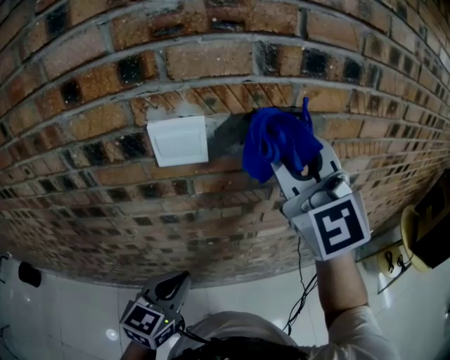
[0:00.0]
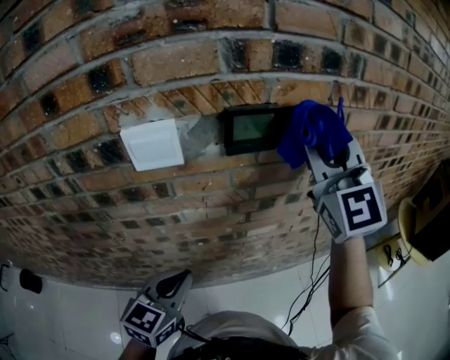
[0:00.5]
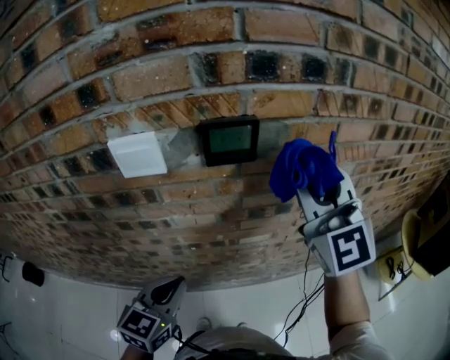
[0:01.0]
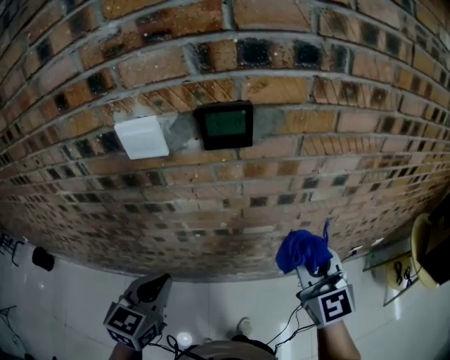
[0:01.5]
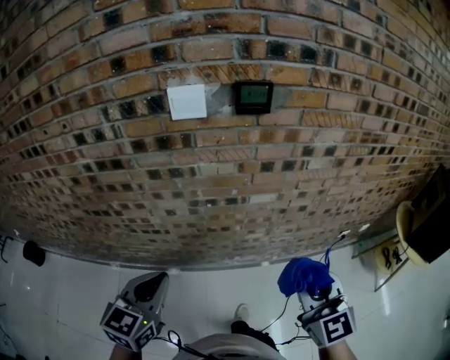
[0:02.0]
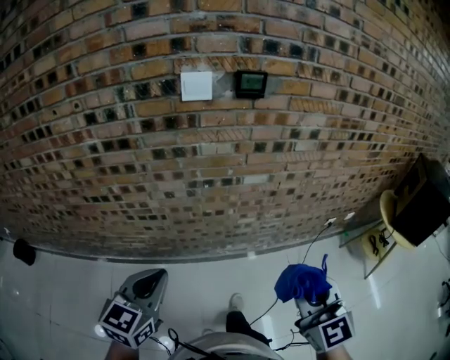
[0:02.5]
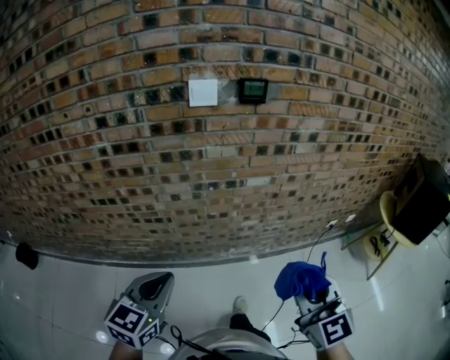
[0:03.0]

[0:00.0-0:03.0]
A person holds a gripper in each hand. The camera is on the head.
0:00.0 to 0:01.5: The left gripper ends up roughly 5 cm from where it was, while the right gripper travels downward, to the right and backward by roughly 30 cm, and rotates about 20 degrees.
0:01.5 to 0:03.0: Both grippers move backward, about 30 cm.

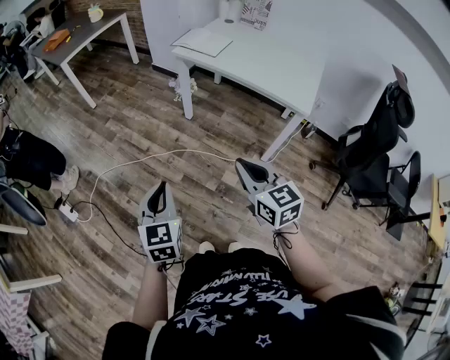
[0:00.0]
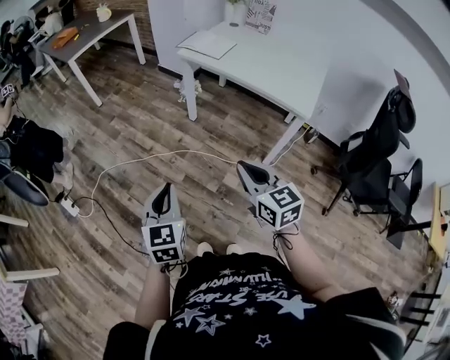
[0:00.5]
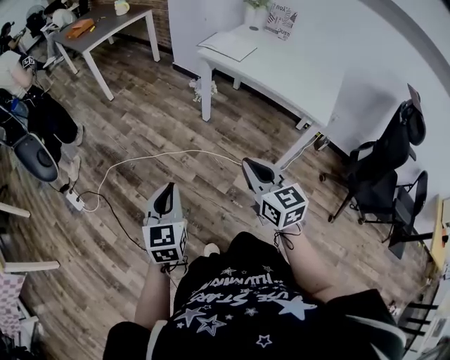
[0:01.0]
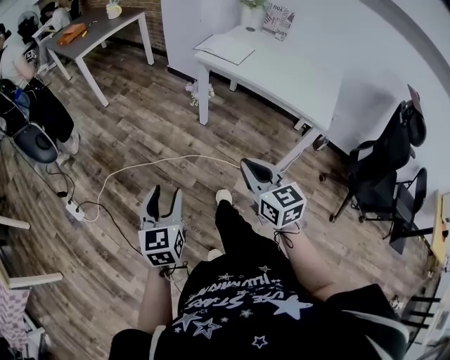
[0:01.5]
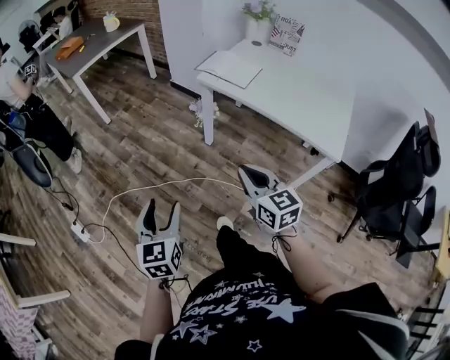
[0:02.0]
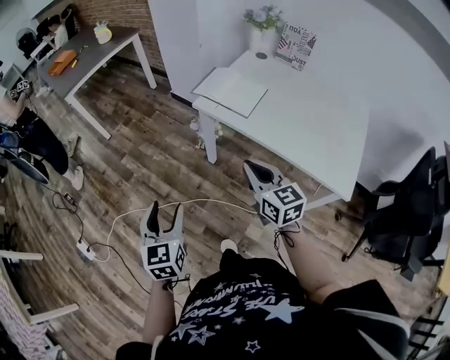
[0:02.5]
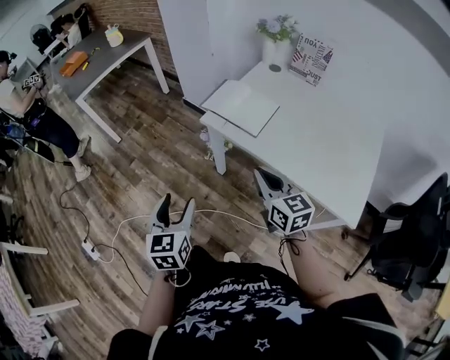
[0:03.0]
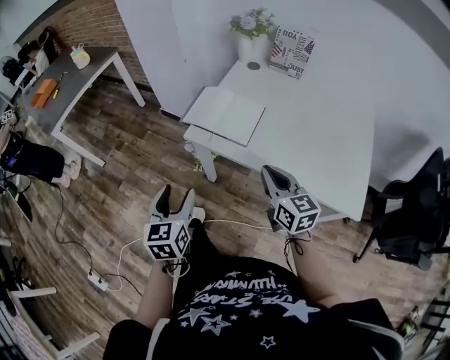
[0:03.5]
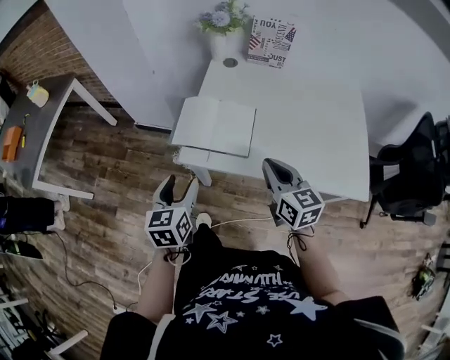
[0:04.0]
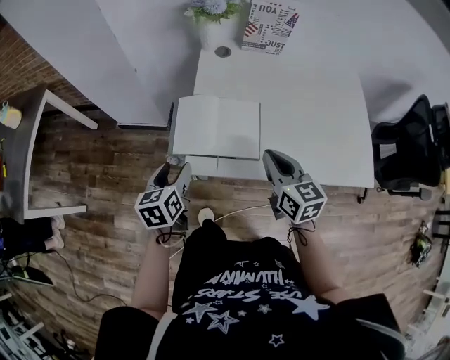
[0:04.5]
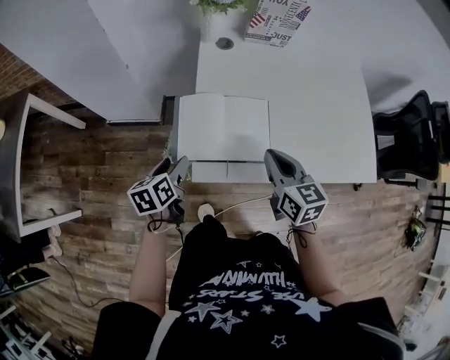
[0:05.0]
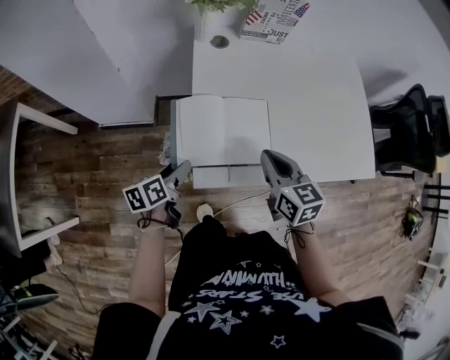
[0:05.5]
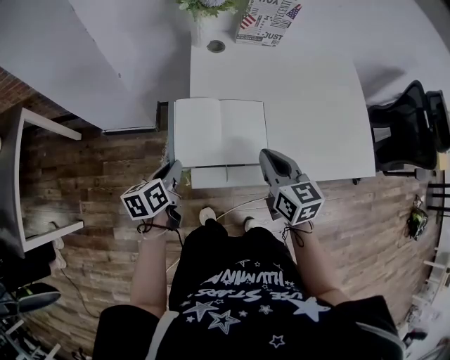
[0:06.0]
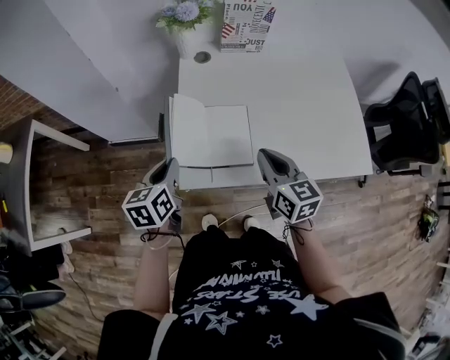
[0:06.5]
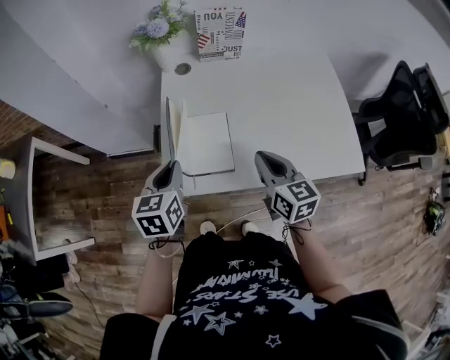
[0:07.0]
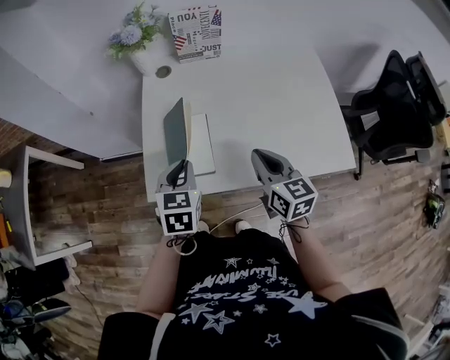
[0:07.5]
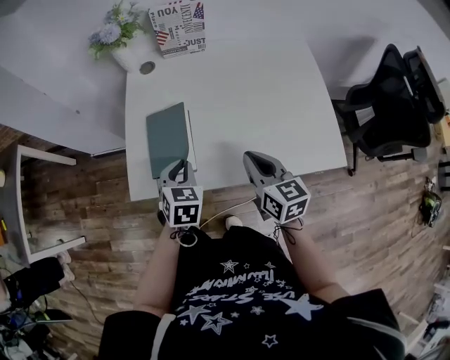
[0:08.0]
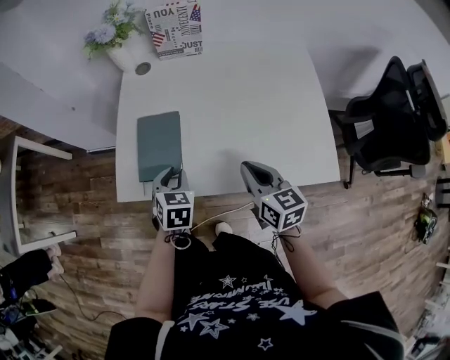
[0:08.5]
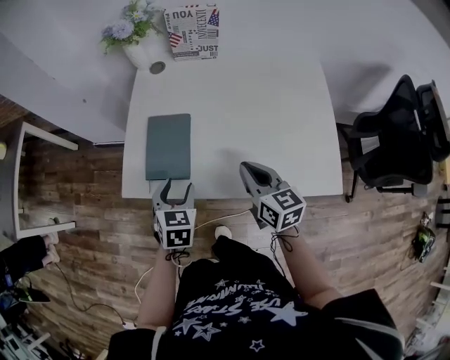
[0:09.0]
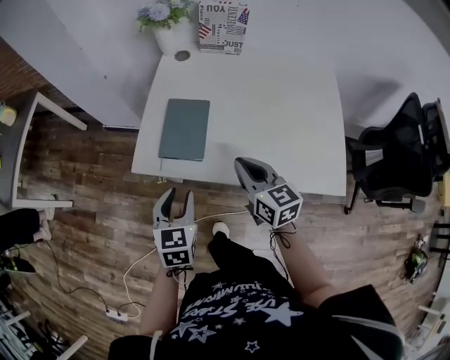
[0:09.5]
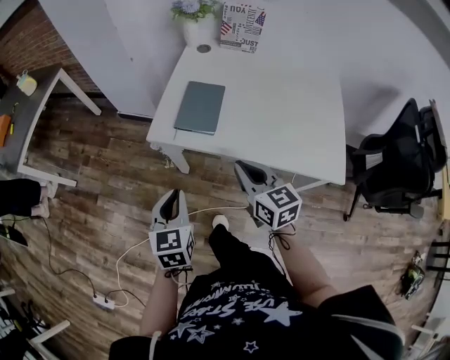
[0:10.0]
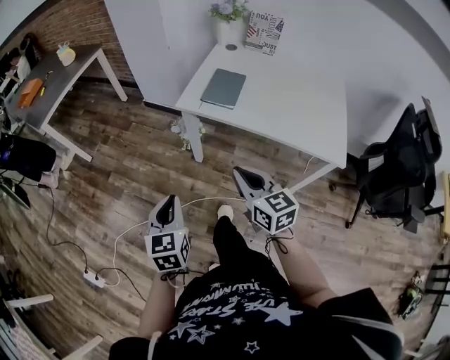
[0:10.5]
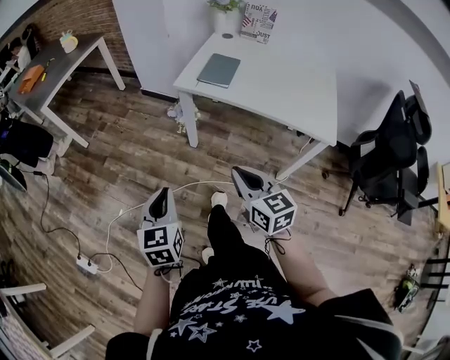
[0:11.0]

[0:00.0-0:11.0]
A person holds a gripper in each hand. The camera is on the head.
0:00.0 to 0:02.0: Both grippers move forward, about 20 cm. The left gripper opens.
0:02.0 to 0:03.5: The right gripper goes roughly 35 cm forward and to the right. Meanwhile the left gripper heads forward, covering roughly 40 cm.
0:03.5 to 0:05.5: The left gripper moves about 40 cm, and rotates some 60 degrees. Meanwhile the right gripper changes place by some 20 cm, and rotates about 30 degrees.
0:05.5 to 0:07.5: The left gripper travels to the right and upward by about 25 cm, rolls clockwise, seen from behind, by some 50 degrees, and closes. The right gripper is displaced to the right by about 15 cm.
0:07.5 to 0:09.0: The left gripper is displaced downward and to the right by approximately 10 cm, and opens up. Meanwhile the right gripper shifts by about 5 cm.
0:09.0 to 0:11.0: Both grippers are carried backward and to the left, roughly 50 cm. The left gripper swivels approximately 40 degrees, and closes its fingers. Meanwhile the right gripper turns by roughly 20 degrees.

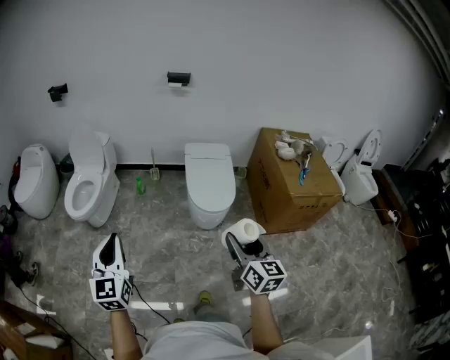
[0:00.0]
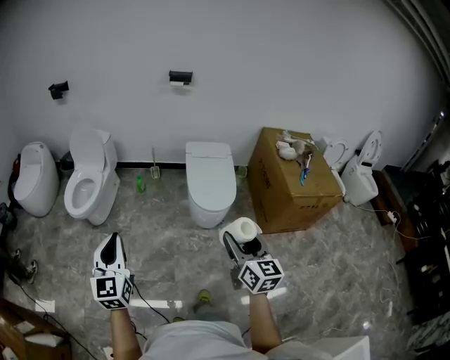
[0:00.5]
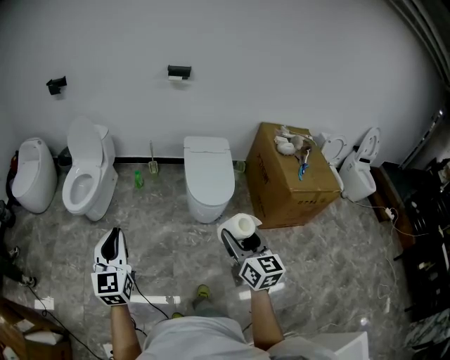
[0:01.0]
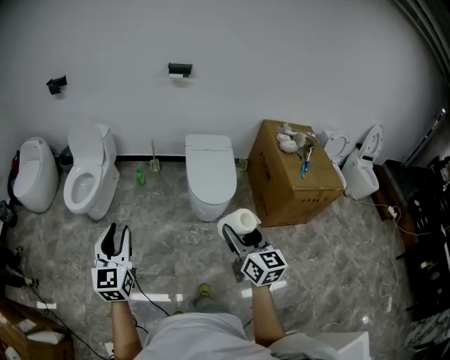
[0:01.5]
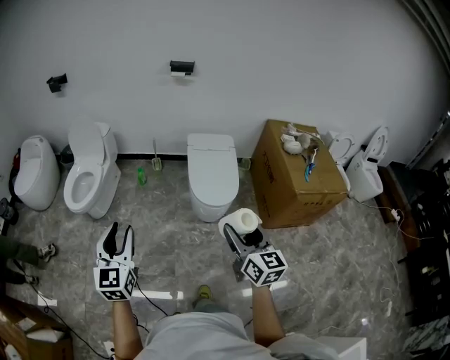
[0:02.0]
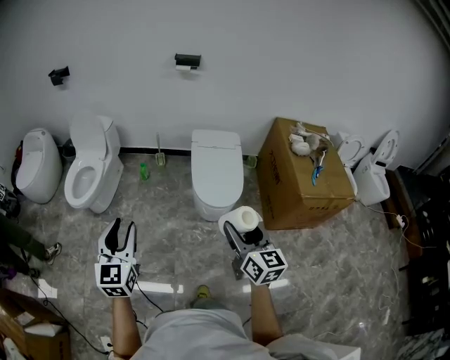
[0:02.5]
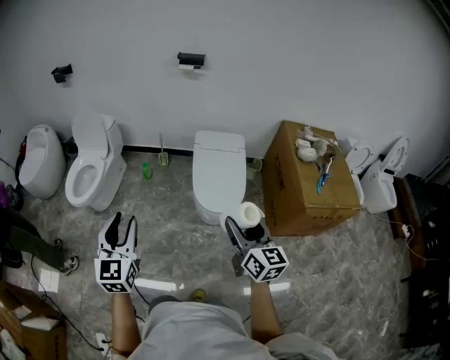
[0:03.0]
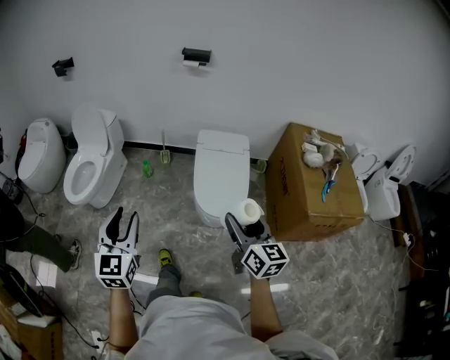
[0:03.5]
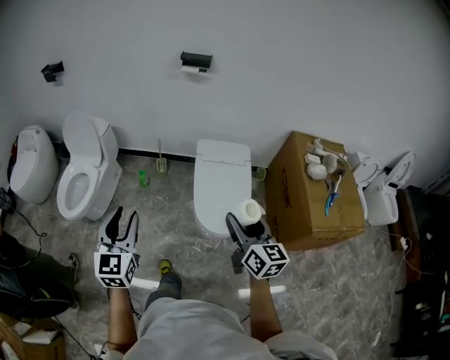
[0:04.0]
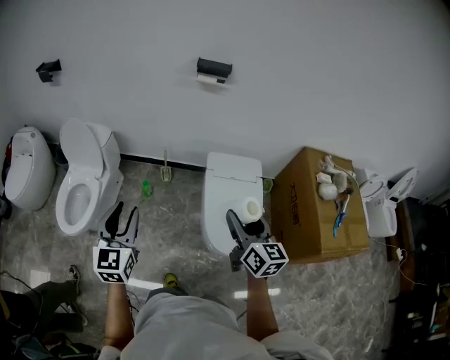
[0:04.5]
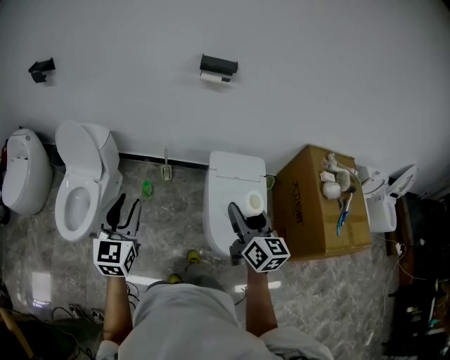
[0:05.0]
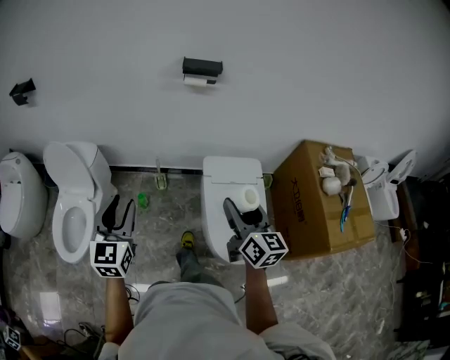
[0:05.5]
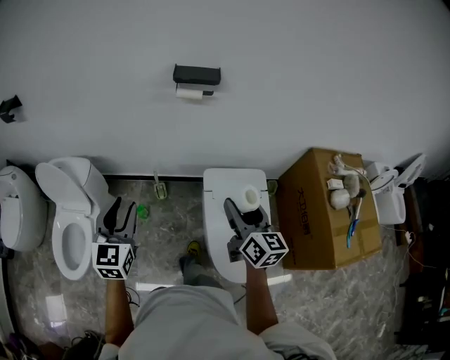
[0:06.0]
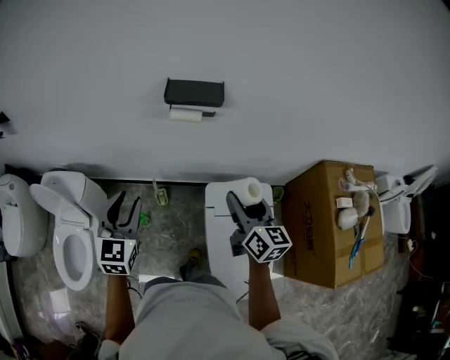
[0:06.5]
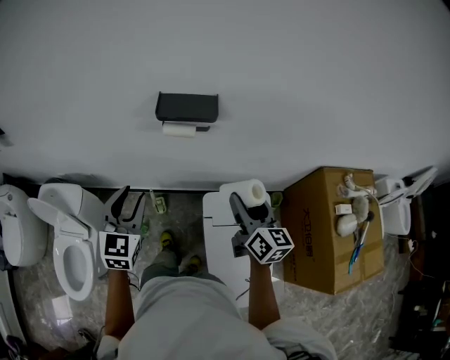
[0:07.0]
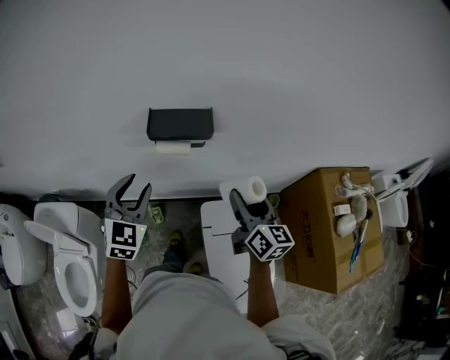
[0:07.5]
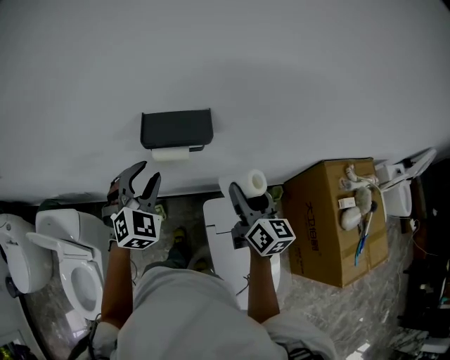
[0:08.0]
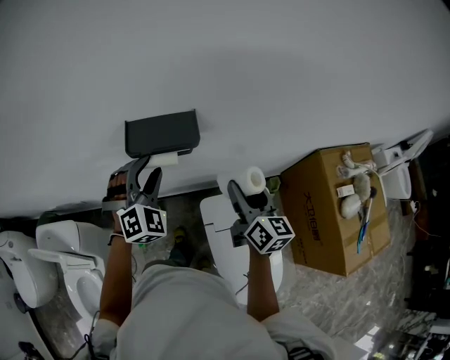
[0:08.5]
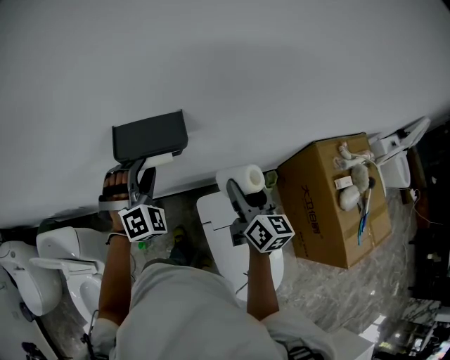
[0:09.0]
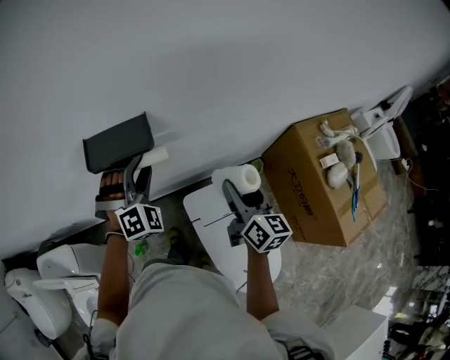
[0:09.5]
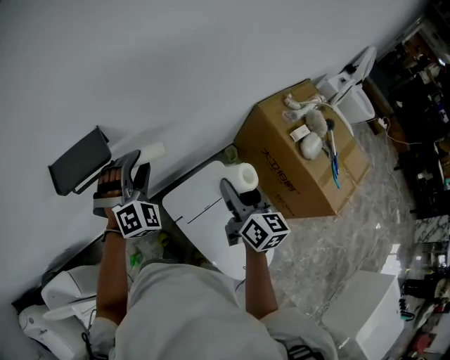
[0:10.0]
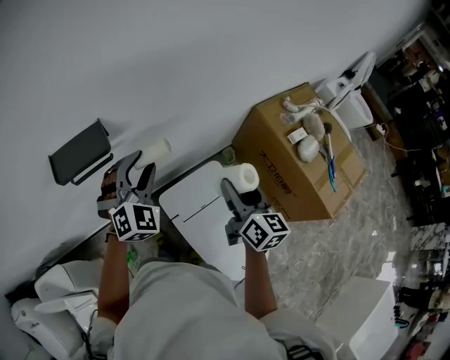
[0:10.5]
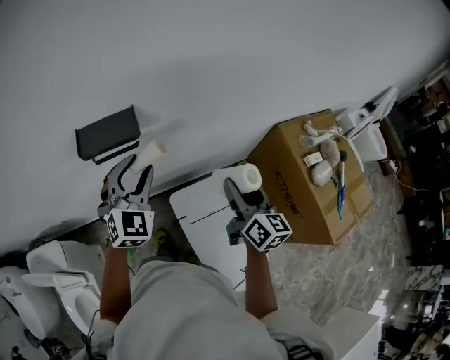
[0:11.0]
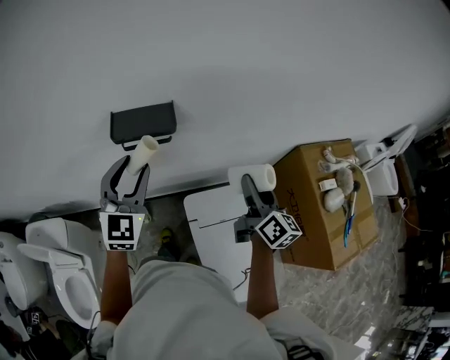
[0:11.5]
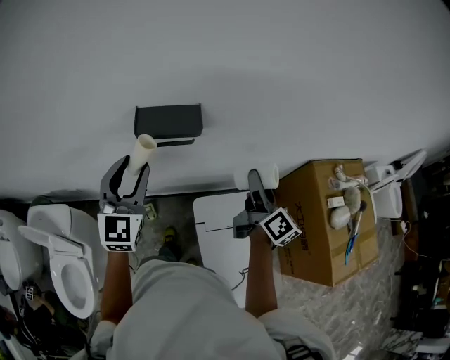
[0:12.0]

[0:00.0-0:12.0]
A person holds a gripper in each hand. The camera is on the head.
0:00.0 to 0:02.0: Both grippers travel together forward, some 5 cm. The left gripper opens its fingers.
0:02.0 to 0:04.0: The grippers both shift forward by some 30 cm.
0:04.0 to 0:06.0: The two grippers travel together, forward, about 50 cm.
0:06.0 to 0:08.0: The grippers both shift forward by about 35 cm. The left gripper swivels some 40 degrees.
0:08.0 to 0:10.0: The right gripper heads to the right and backward, covering some 20 cm, and changes its angle by some 30 degrees, while the left gripper moves to the right, approximately 20 cm, and turns by some 40 degrees.
0:10.0 to 0:12.0: The right gripper travels to the left by approximately 10 cm, and turns by some 30 degrees. Meanwhile the left gripper shifts roughly 25 cm to the left, backward and upward, and twists about 60 degrees counterclockwise, seen from behind.
